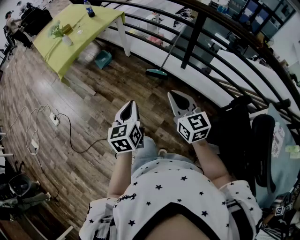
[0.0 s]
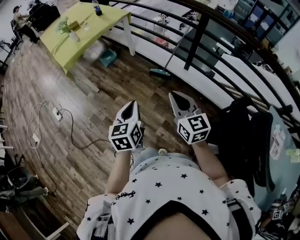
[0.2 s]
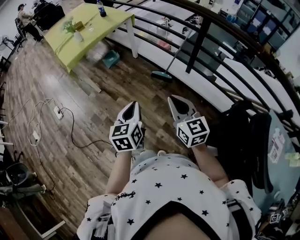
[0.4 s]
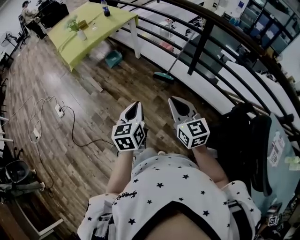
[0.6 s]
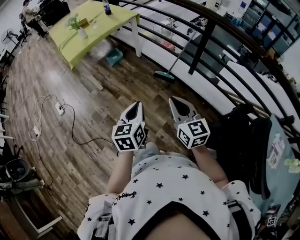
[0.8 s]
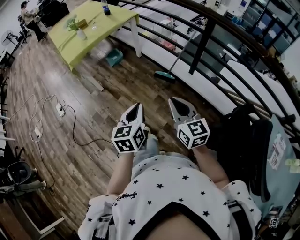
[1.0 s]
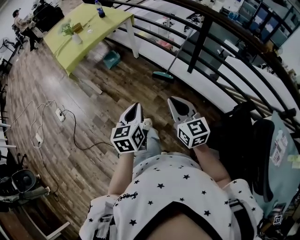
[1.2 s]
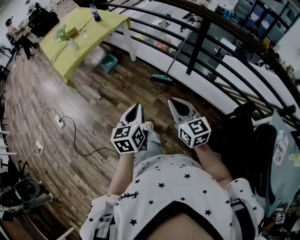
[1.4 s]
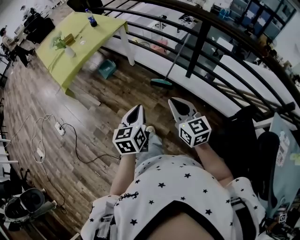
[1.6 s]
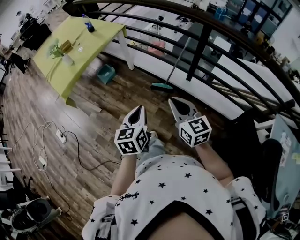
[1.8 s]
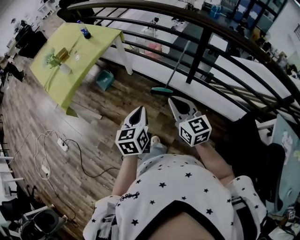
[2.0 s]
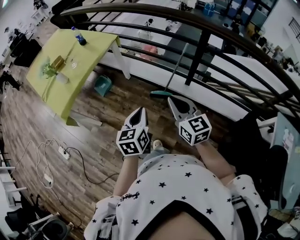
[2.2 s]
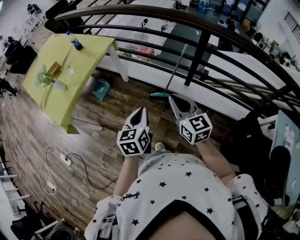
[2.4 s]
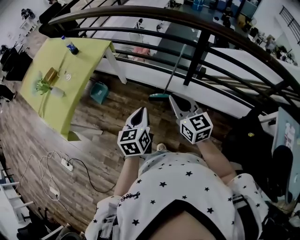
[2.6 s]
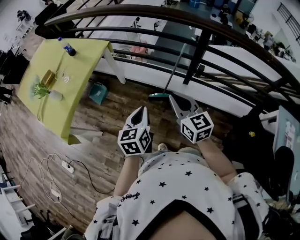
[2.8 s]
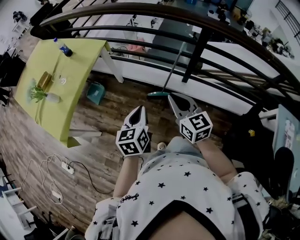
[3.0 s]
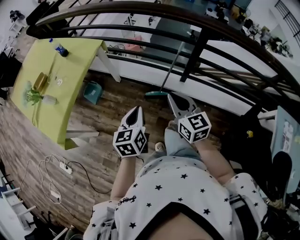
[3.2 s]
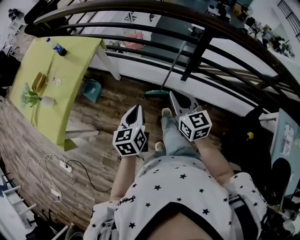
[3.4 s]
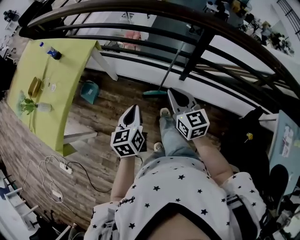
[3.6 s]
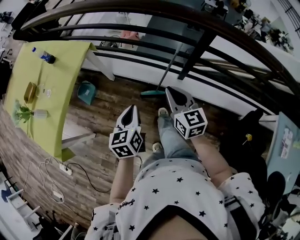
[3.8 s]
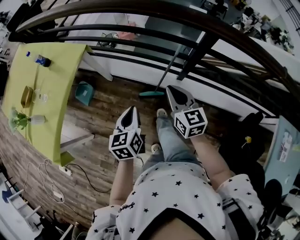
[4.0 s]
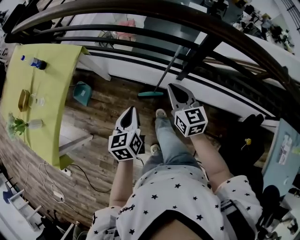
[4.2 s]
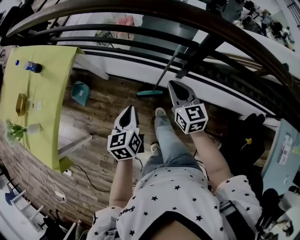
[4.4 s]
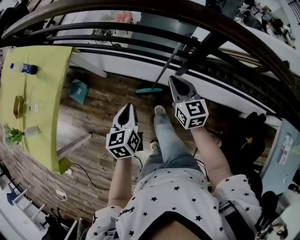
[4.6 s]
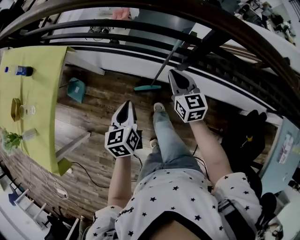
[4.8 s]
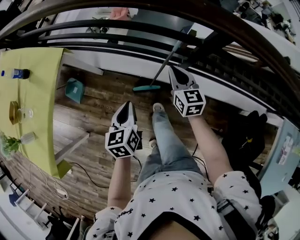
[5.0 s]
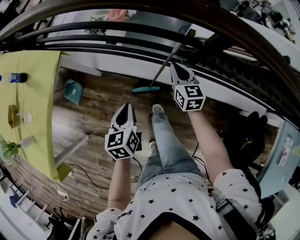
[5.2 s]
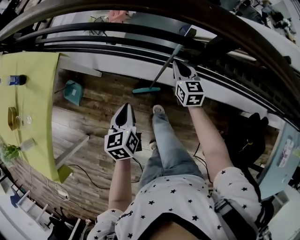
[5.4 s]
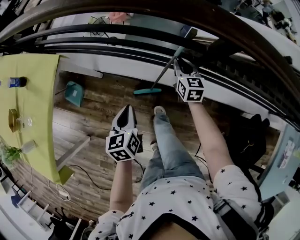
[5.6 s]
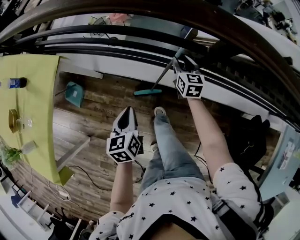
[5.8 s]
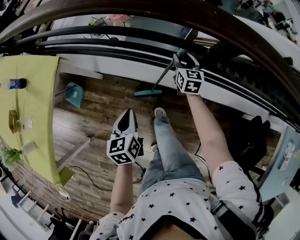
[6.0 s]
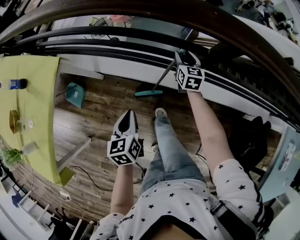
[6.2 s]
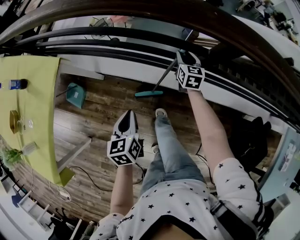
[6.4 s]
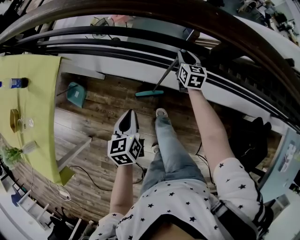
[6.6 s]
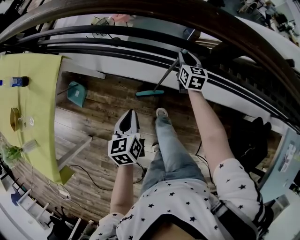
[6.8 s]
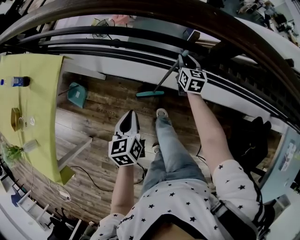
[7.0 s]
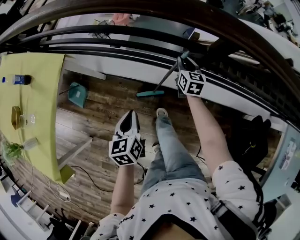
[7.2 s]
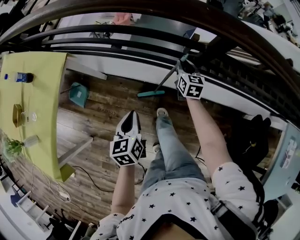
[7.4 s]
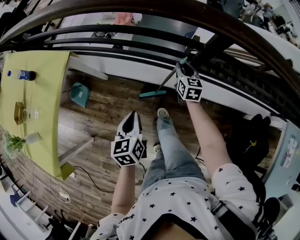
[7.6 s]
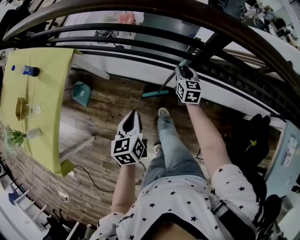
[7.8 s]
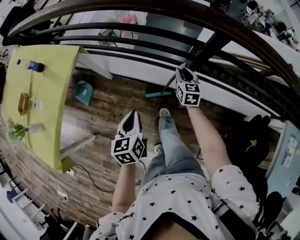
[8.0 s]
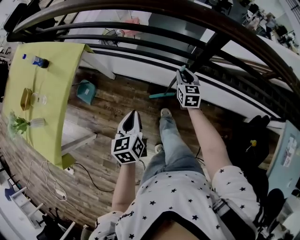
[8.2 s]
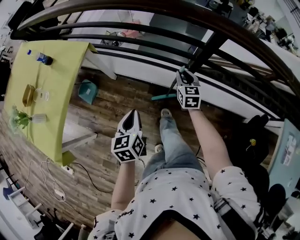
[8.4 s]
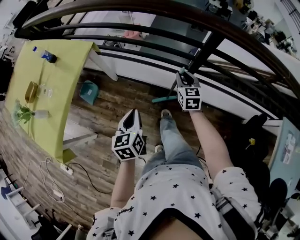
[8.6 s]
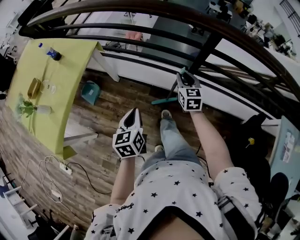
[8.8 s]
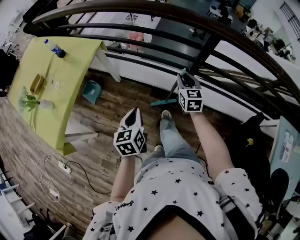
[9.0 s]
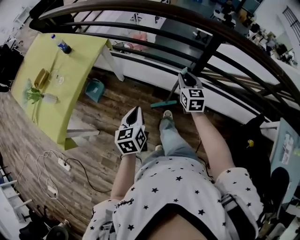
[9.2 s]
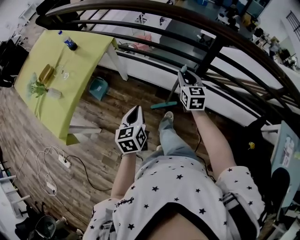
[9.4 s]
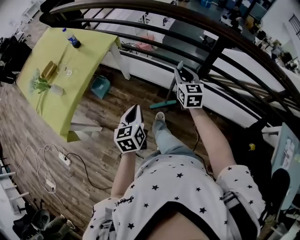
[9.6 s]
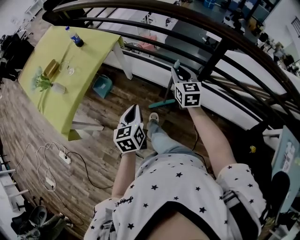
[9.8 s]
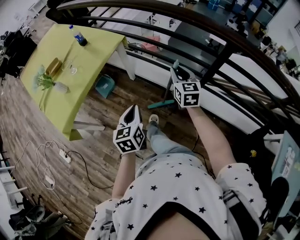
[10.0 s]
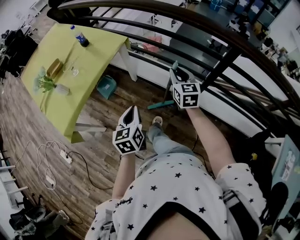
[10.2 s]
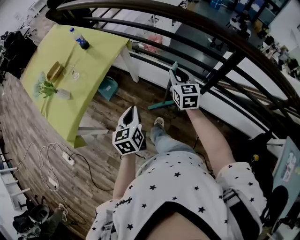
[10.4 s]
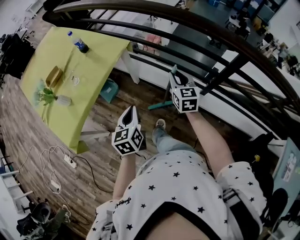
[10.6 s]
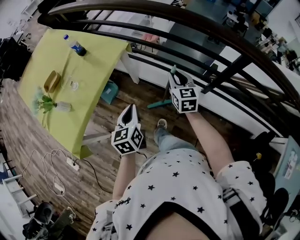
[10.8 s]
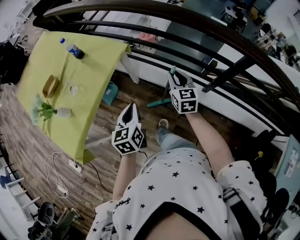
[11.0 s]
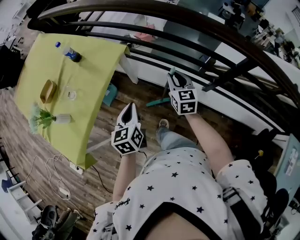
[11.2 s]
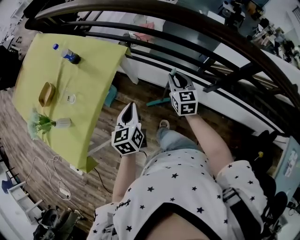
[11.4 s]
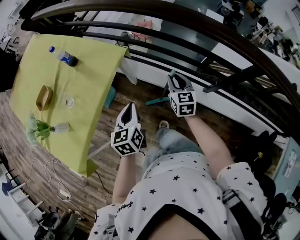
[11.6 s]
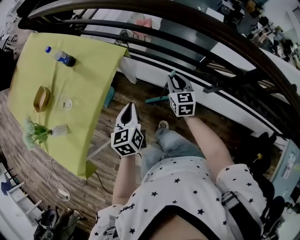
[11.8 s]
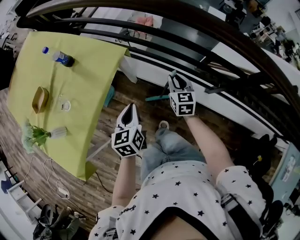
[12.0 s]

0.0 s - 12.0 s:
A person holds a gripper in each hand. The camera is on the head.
0.0 s - 1.6 s: The grippers both shift forward by approximately 5 cm.
1.6 s - 3.0 s: Both grippers travel together forward, roughly 30 cm.
3.0 s - 4.4 s: Both grippers travel together forward and downward, some 25 cm.
4.4 s - 6.0 s: The left gripper shifts approximately 10 cm downward and forward, while the right gripper goes roughly 30 cm forward, downward and to the right, and opens up.
6.0 s - 7.6 s: Both grippers travel together backward, some 5 cm. The right gripper closes its fingers.
7.6 s - 9.0 s: The grippers both shift backward and upward by roughly 20 cm.
9.0 s - 10.4 s: Both grippers move to the left, some 15 cm.
10.4 s - 12.0 s: The left gripper heads forward, covering roughly 25 cm; the right gripper goes some 25 cm forward and downward.

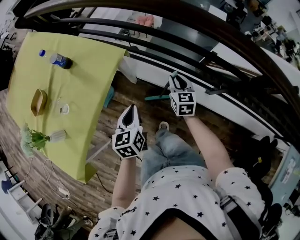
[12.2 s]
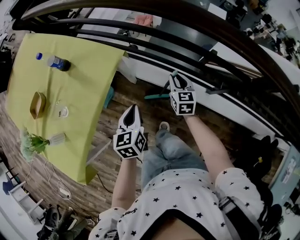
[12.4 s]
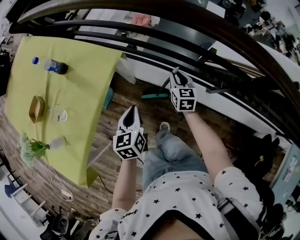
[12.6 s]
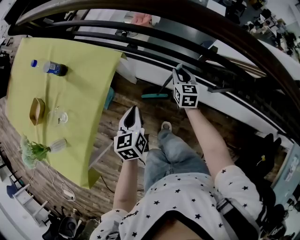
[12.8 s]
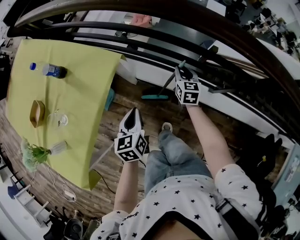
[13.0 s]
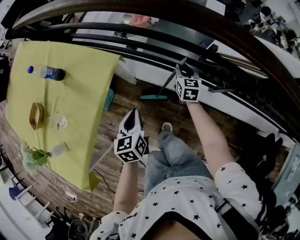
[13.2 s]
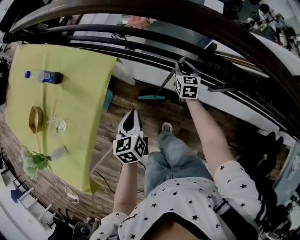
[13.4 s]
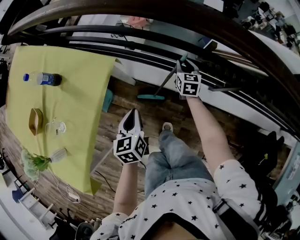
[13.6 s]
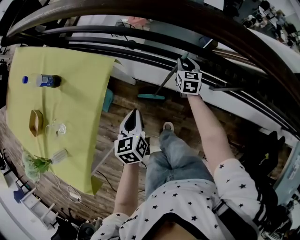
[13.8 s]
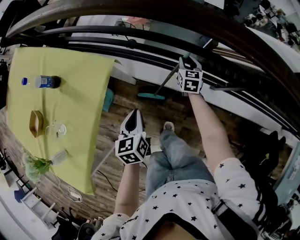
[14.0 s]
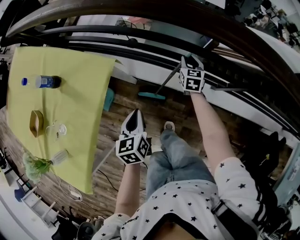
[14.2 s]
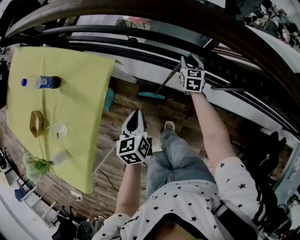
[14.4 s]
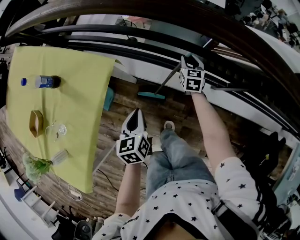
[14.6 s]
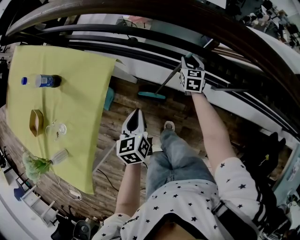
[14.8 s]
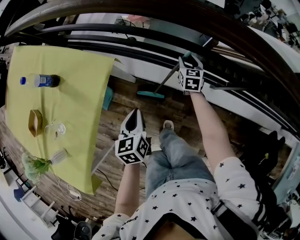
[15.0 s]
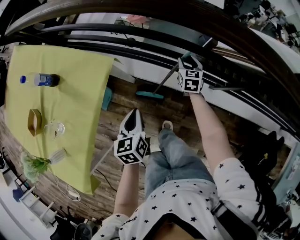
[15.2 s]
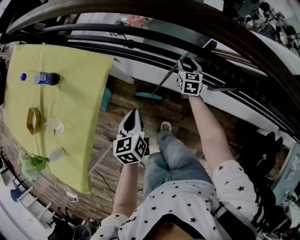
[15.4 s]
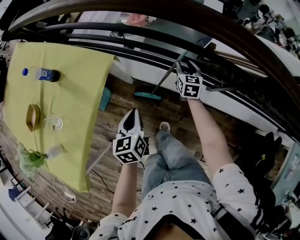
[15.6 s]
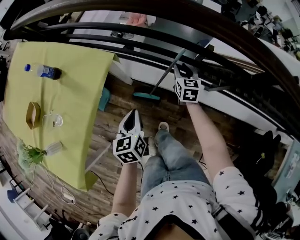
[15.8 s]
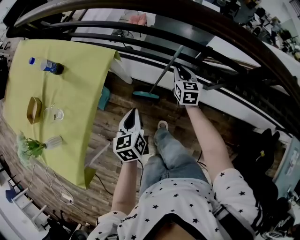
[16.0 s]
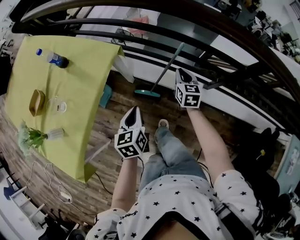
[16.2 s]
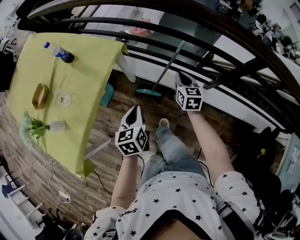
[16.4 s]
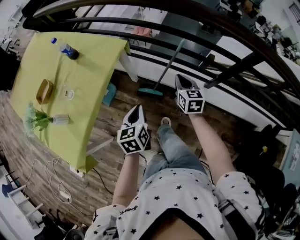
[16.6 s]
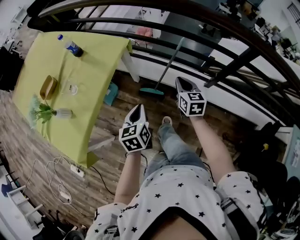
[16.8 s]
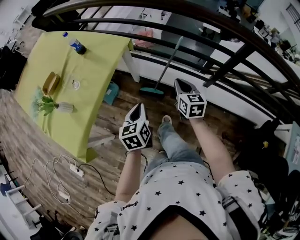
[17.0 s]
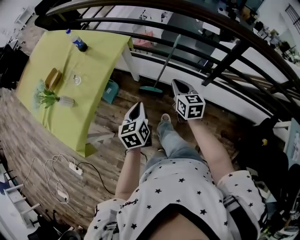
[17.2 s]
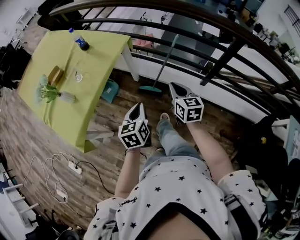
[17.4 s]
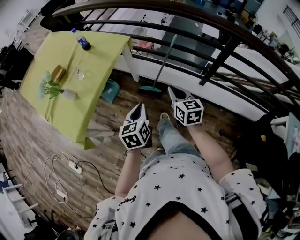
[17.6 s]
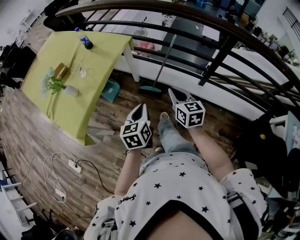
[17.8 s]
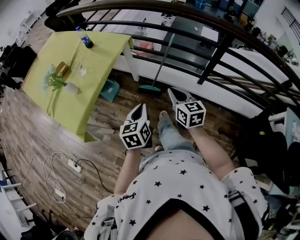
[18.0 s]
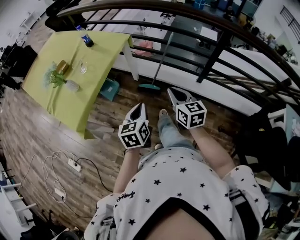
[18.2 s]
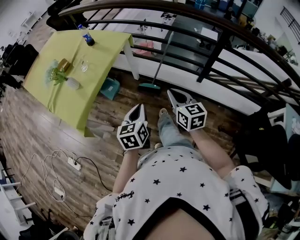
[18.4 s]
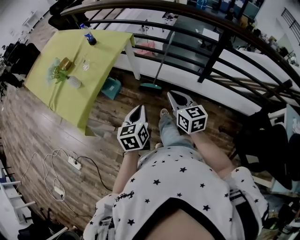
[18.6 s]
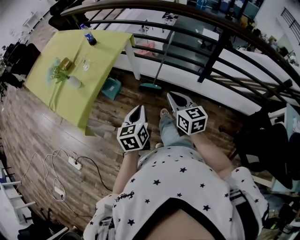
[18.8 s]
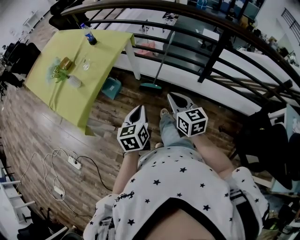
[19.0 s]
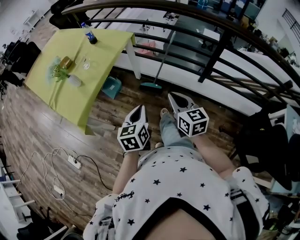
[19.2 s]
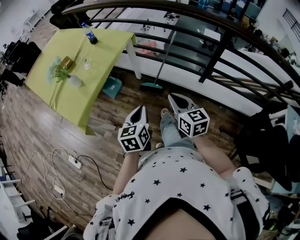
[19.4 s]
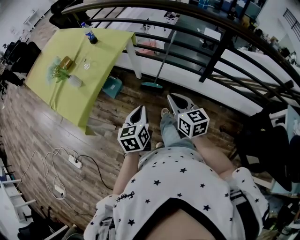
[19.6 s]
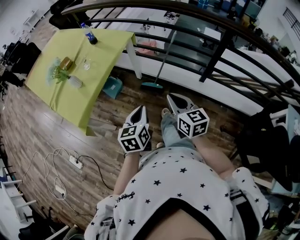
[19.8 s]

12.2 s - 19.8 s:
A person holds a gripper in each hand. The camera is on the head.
12.2 s - 13.8 s: The left gripper shifts roughly 10 cm forward and downward; the right gripper shifts some 20 cm forward, downward and to the right.
13.8 s - 15.2 s: The grippers stay close to where they were, moving slightly.
15.2 s - 16.8 s: The left gripper goes approximately 20 cm backward. The right gripper is displaced backward and upward by approximately 35 cm, and closes.
16.8 s - 18.2 s: The grippers both shift backward by about 25 cm.
18.2 s - 19.8 s: The right gripper is displaced backward by about 5 cm.

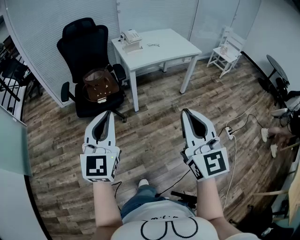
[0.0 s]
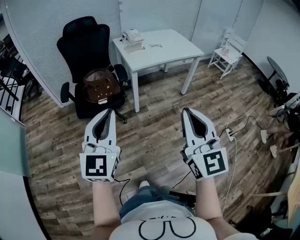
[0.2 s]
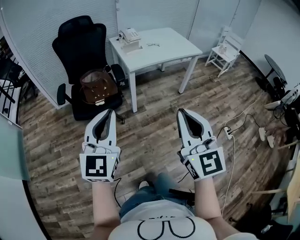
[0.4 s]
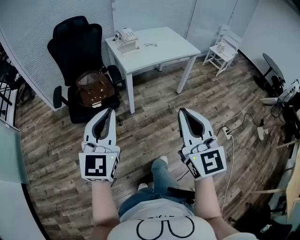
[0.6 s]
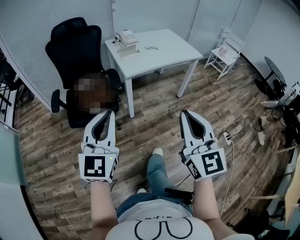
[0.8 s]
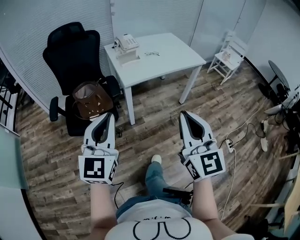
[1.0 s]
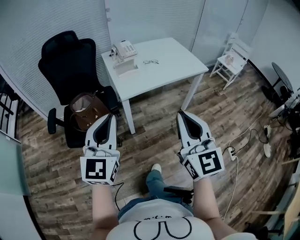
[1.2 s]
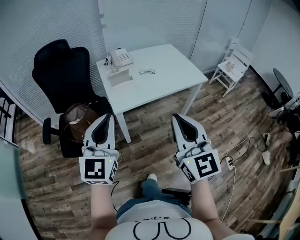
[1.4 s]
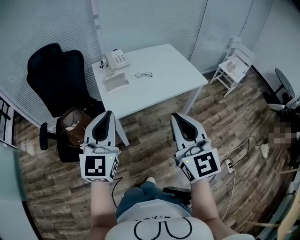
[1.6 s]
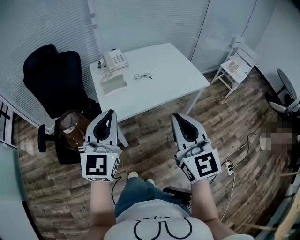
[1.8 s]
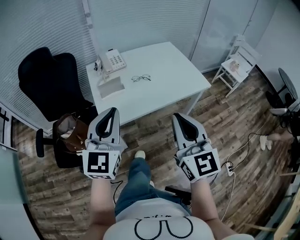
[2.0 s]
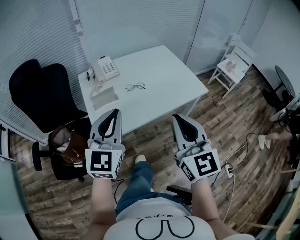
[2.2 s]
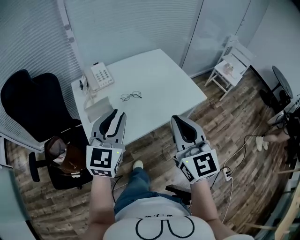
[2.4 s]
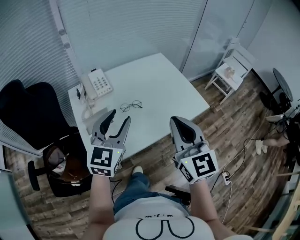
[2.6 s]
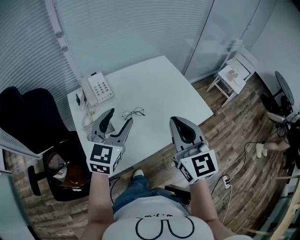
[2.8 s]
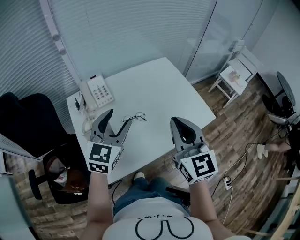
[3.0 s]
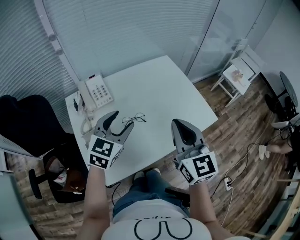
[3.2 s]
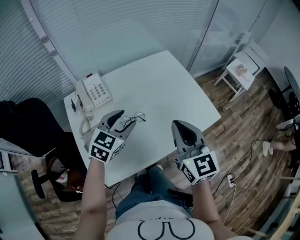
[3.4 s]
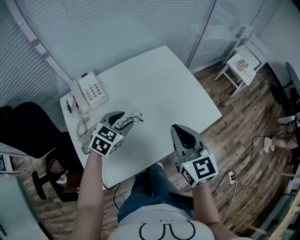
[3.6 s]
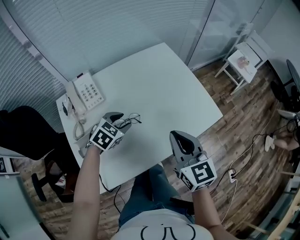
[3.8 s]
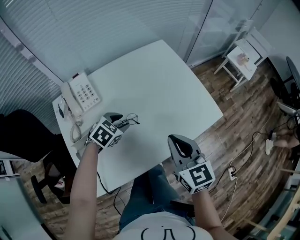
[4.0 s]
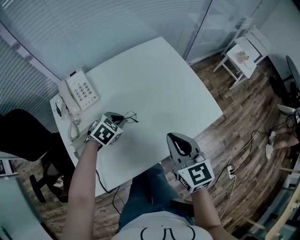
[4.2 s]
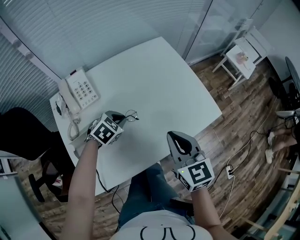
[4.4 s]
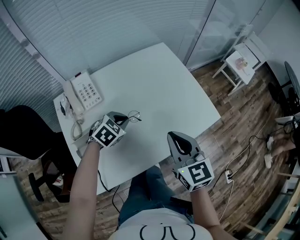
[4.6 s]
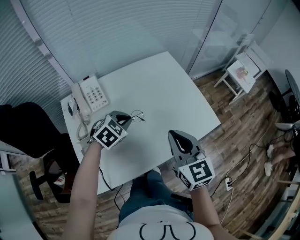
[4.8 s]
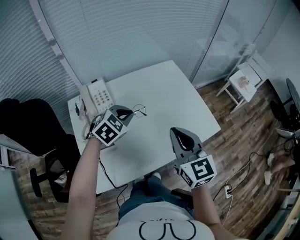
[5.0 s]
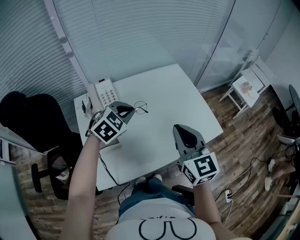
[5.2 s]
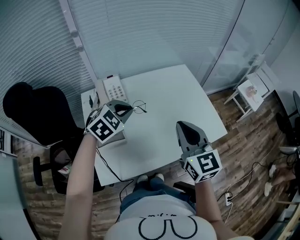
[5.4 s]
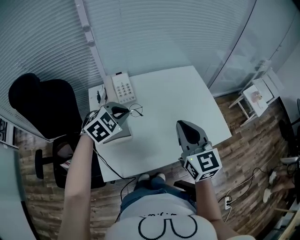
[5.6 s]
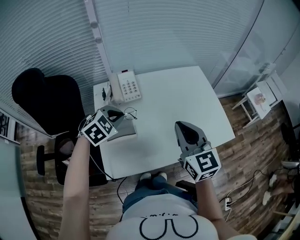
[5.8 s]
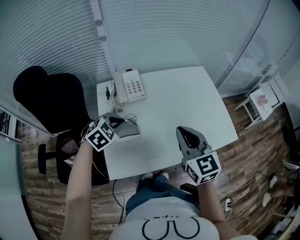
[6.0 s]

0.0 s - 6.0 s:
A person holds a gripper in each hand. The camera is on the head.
0.0 s - 1.6 s: The two grippers travel together, forward, roughly 50 cm.
1.6 s - 3.0 s: The grippers both shift forward by roughly 40 cm. The left gripper turns by approximately 20 degrees, and opens.
3.0 s - 4.4 s: The left gripper goes approximately 25 cm downward and forward, tilts its fingers about 50 degrees downward, and closes its fingers. The right gripper is displaced downward and forward by approximately 15 cm.
4.4 s - 6.0 s: The left gripper is displaced to the left, upward and backward by some 25 cm; the right gripper travels to the left and upward by roughly 15 cm.
